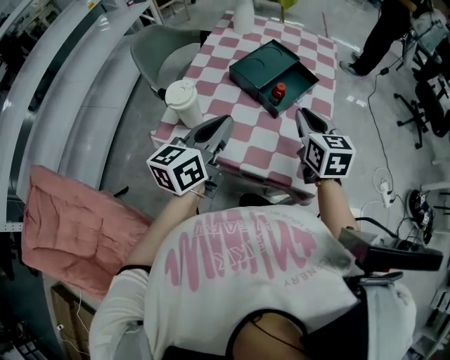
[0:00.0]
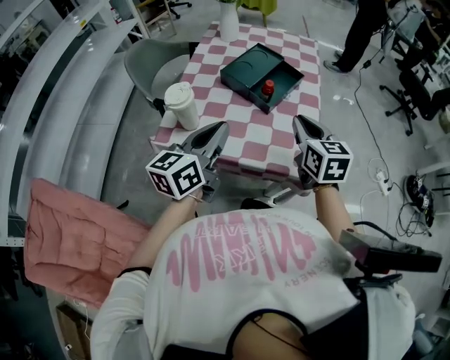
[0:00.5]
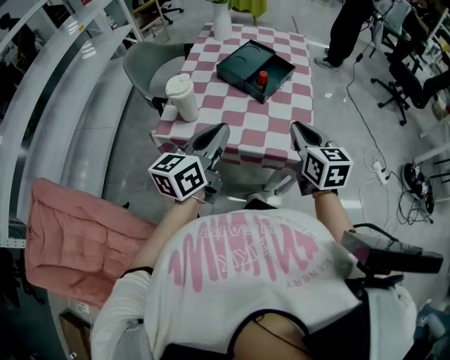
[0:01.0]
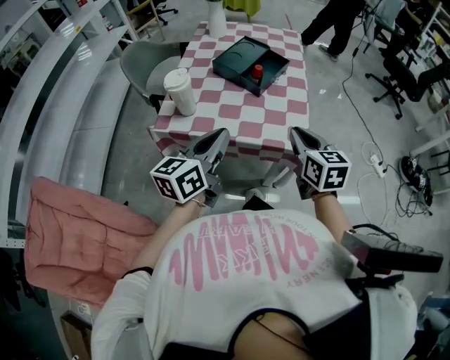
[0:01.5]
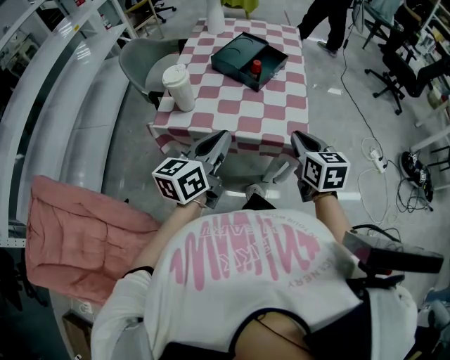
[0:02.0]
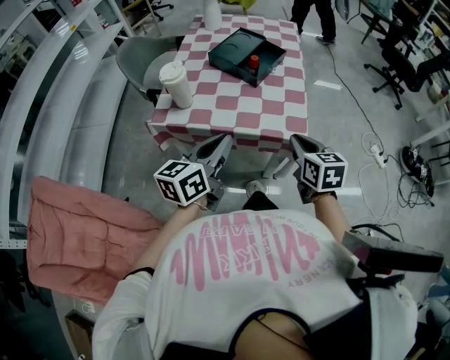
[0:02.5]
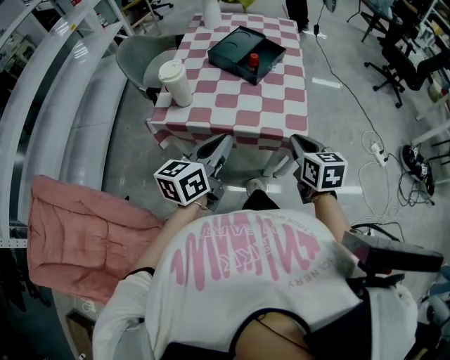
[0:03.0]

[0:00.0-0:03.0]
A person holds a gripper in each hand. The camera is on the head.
0:00.0 to 0:01.5: The two grippers go about 15 cm backward.
0:01.5 to 0:03.0: The right gripper moves downward, about 5 cm.

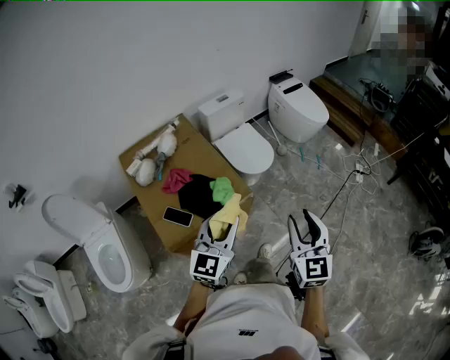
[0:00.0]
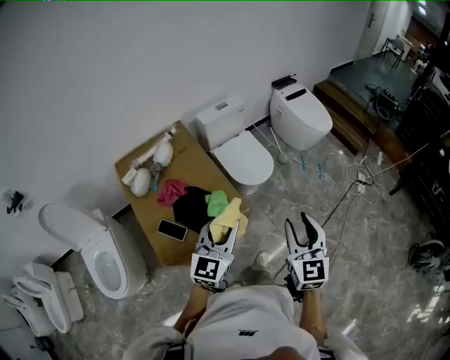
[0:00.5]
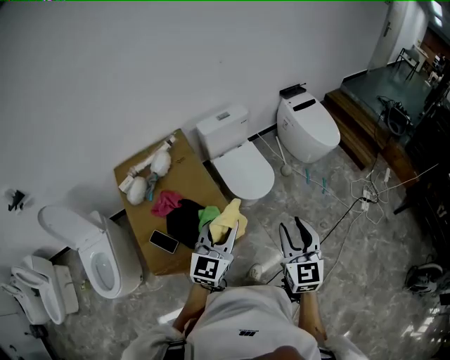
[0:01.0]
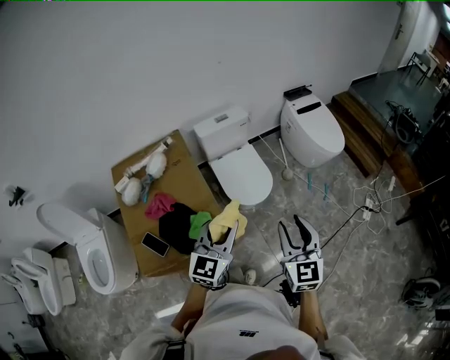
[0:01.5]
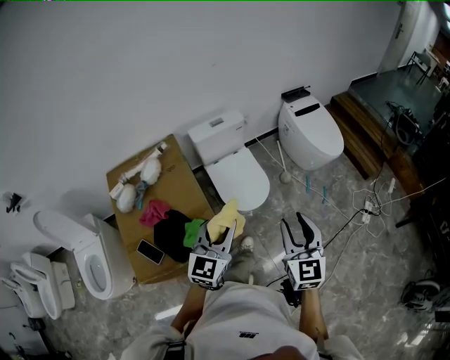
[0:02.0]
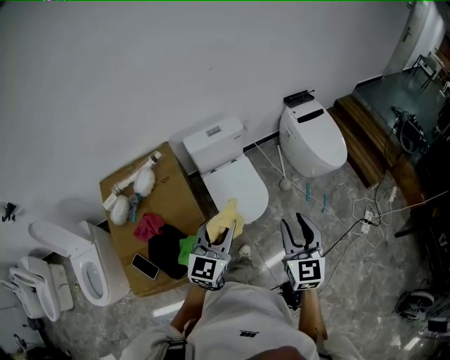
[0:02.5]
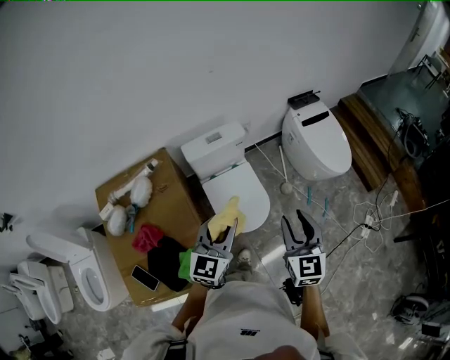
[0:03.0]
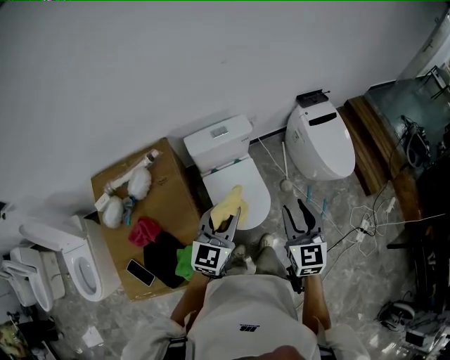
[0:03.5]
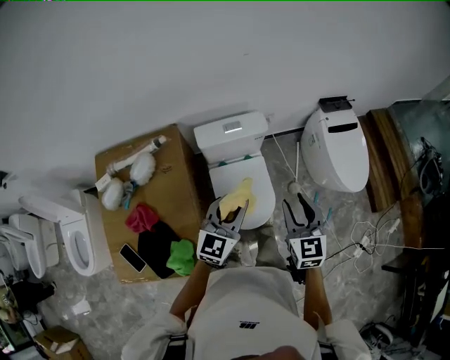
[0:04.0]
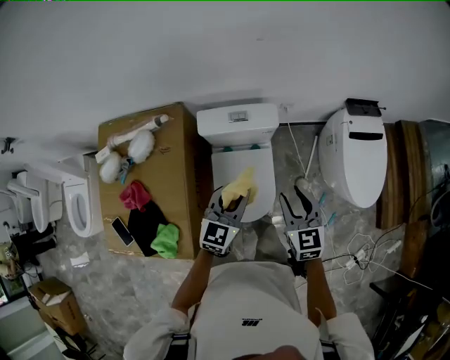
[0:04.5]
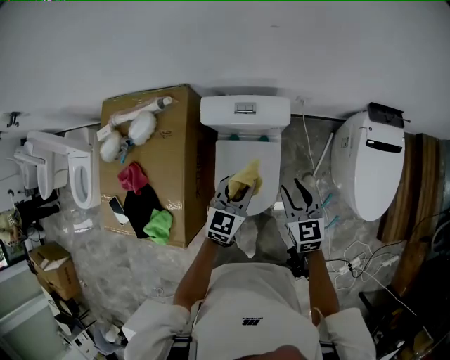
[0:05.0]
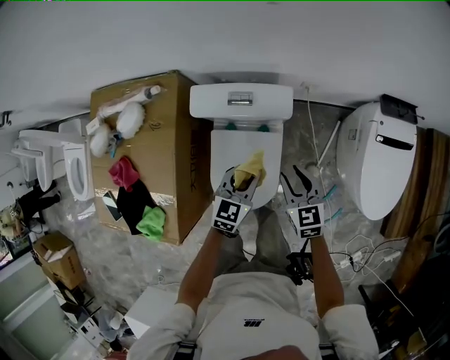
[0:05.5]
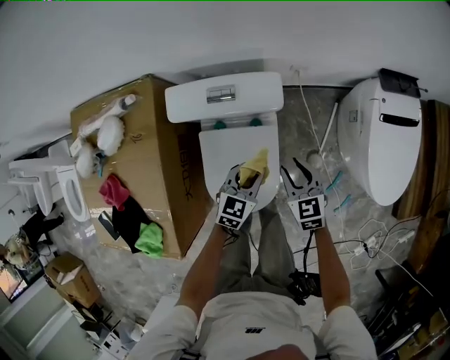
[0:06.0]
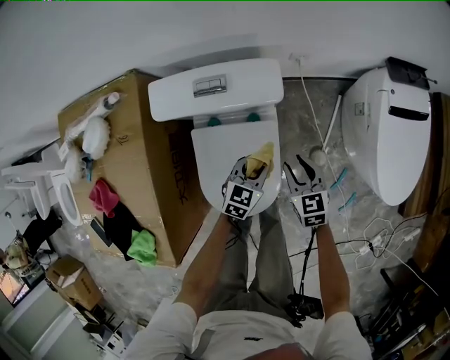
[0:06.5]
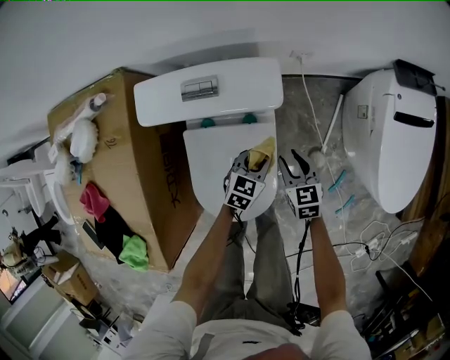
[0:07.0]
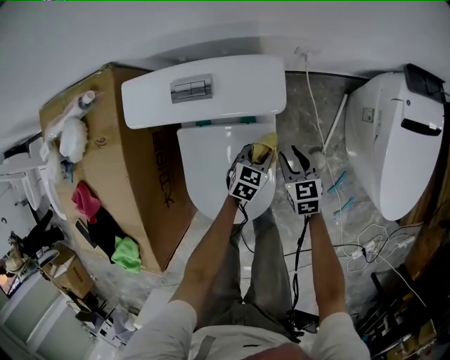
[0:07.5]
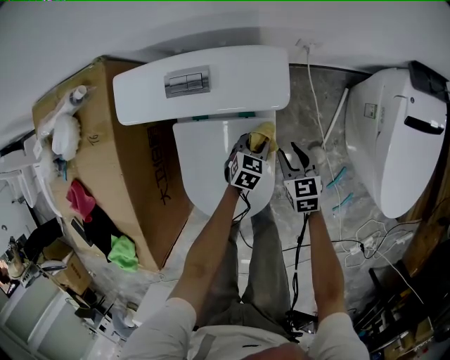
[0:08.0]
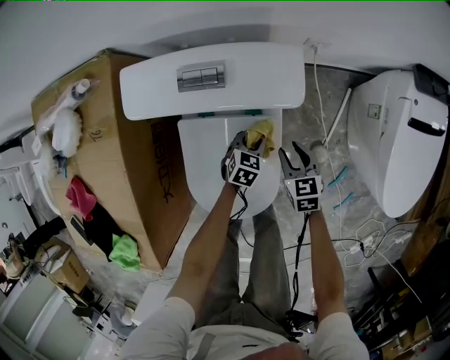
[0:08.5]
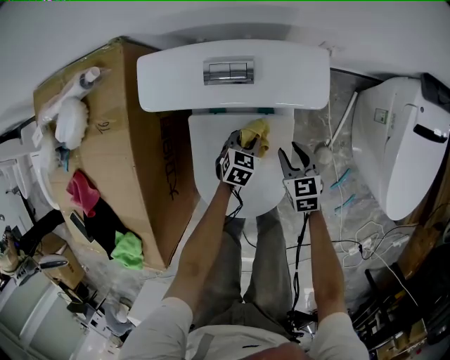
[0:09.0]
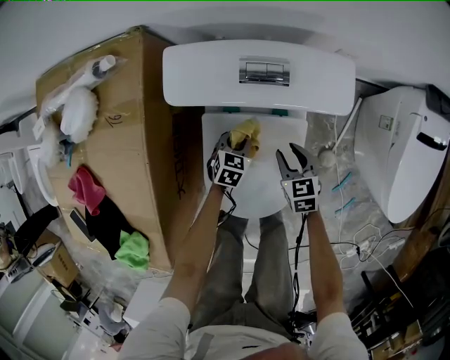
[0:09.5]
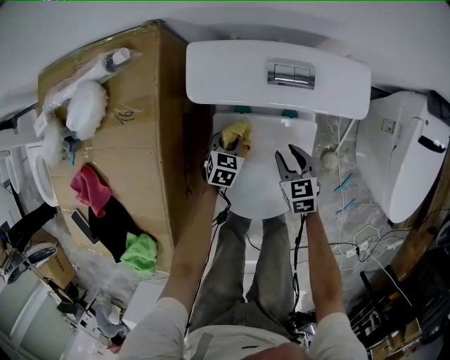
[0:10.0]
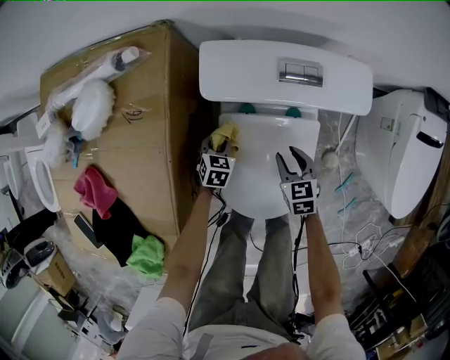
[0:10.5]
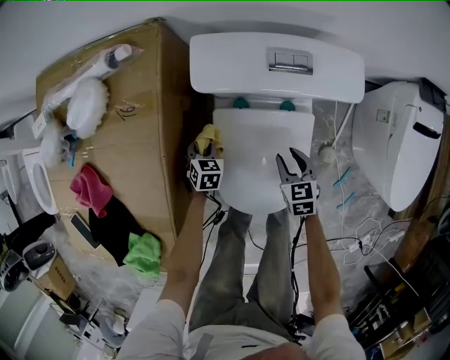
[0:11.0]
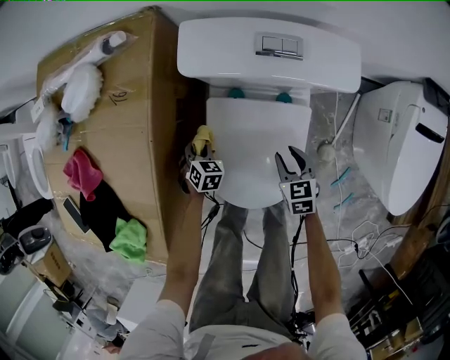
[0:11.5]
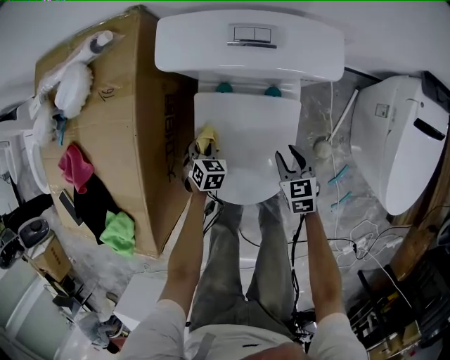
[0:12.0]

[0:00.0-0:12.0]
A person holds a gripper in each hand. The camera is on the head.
0:00.0 to 0:02.0: The left gripper is displaced forward and to the right by approximately 35 cm. The right gripper travels forward by approximately 35 cm.
0:02.0 to 0:04.0: Both grippers move forward, roughly 35 cm.
0:04.0 to 0:06.0: The left gripper goes about 40 cm downward, forward and to the right, and swivels some 30 degrees; the right gripper is displaced downward and forward by about 40 cm, and rotates about 30 degrees.
0:06.0 to 0:08.0: The grippers both shift downward by some 25 cm.
0:08.0 to 0:10.0: The two grippers go approximately 20 cm to the left.
0:10.0 to 0:12.0: The right gripper moves backward and to the right, about 10 cm. Meanwhile the left gripper is displaced backward and to the left by roughly 10 cm, and changes its angle by approximately 20 degrees.

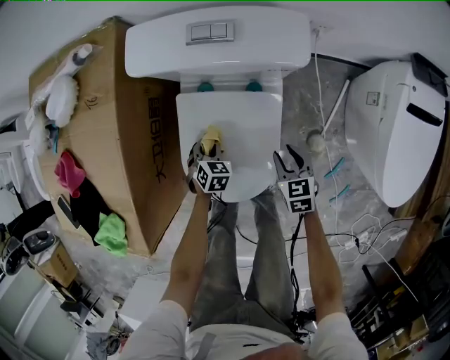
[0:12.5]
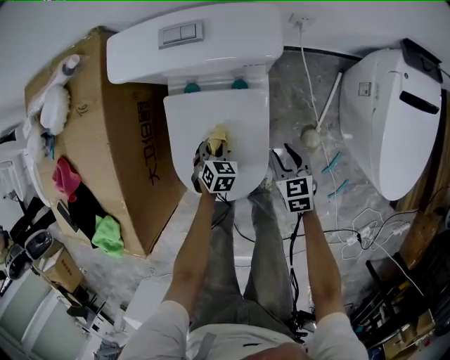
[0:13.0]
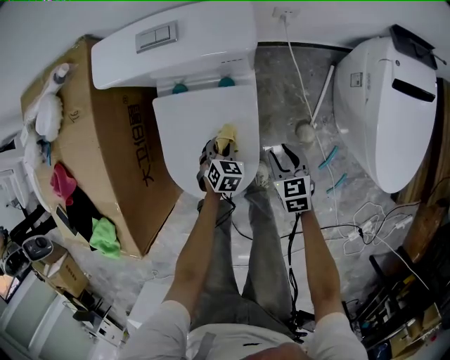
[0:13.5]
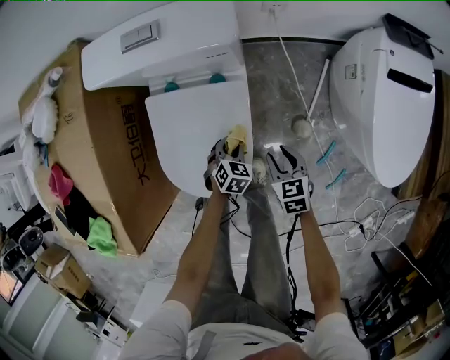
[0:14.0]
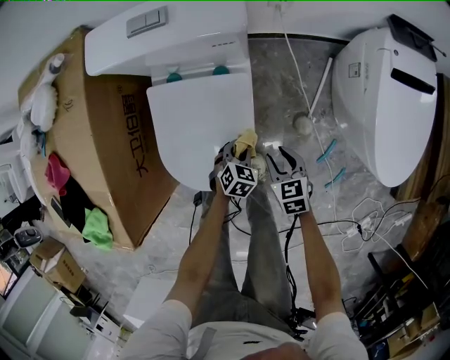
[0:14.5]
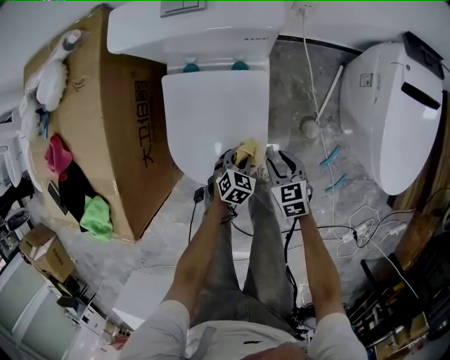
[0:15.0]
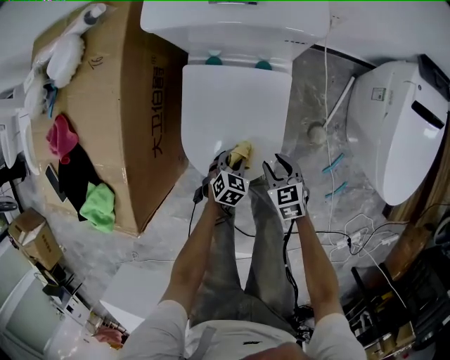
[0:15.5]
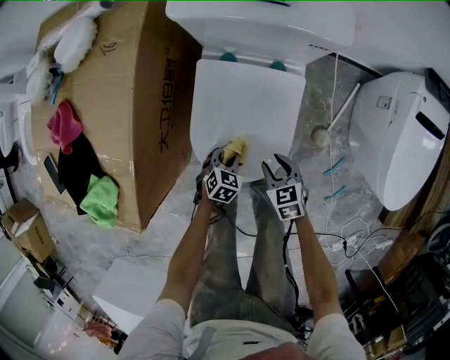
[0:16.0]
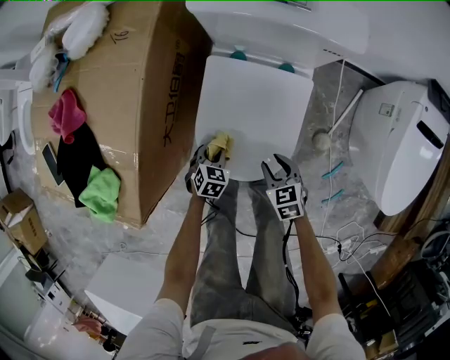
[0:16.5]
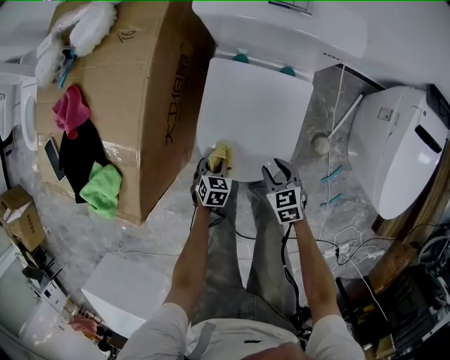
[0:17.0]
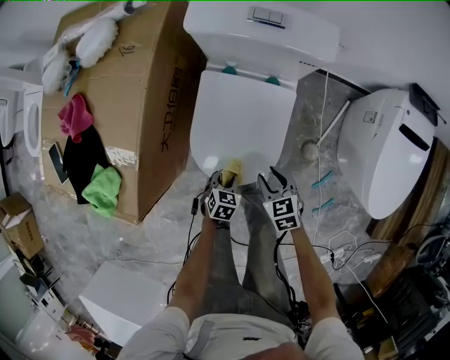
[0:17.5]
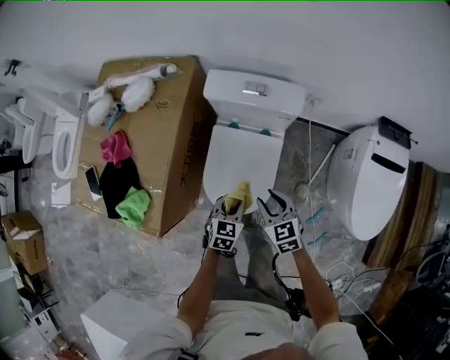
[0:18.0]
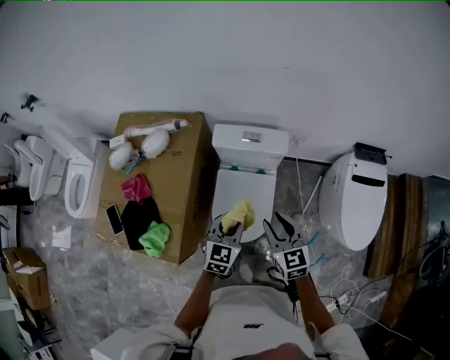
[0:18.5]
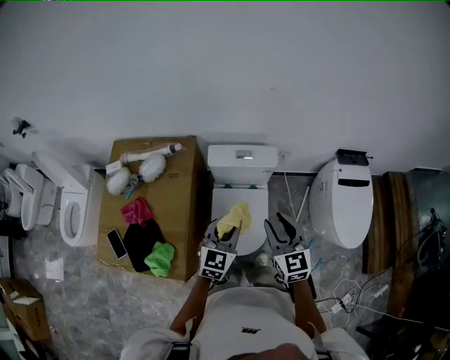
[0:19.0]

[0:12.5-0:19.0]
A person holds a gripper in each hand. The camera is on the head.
0:12.5 to 0:14.5: The right gripper goes approximately 10 cm backward and to the right. Meanwhile the left gripper heads to the right and backward, covering roughly 20 cm, and rotates approximately 20 degrees.
0:14.5 to 0:17.0: The left gripper is displaced to the left by roughly 25 cm, and rotates roughly 30 degrees, while the right gripper heads to the left, covering some 15 cm.
0:17.0 to 0:19.0: Both grippers travel together upward, some 60 cm. The right gripper angles its fingers upward, by some 40 degrees. The left gripper angles its fingers upward, by approximately 50 degrees.

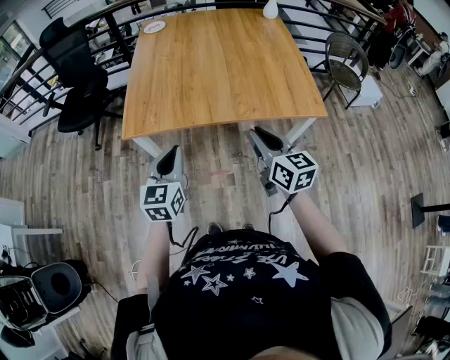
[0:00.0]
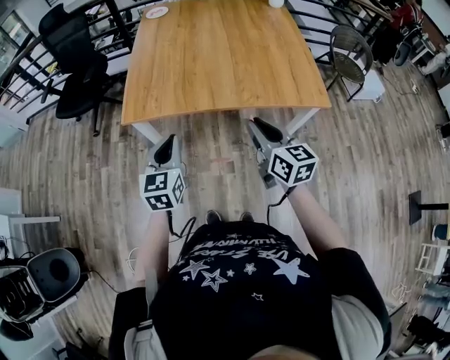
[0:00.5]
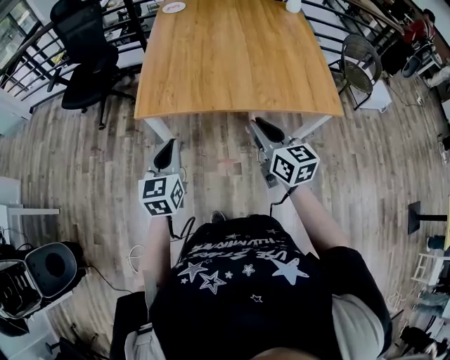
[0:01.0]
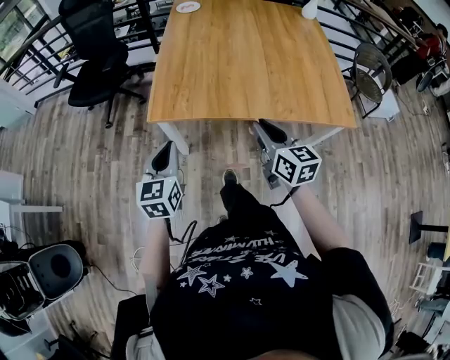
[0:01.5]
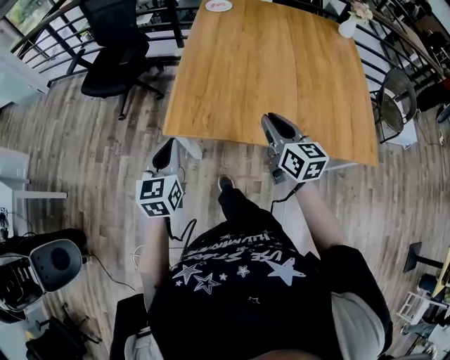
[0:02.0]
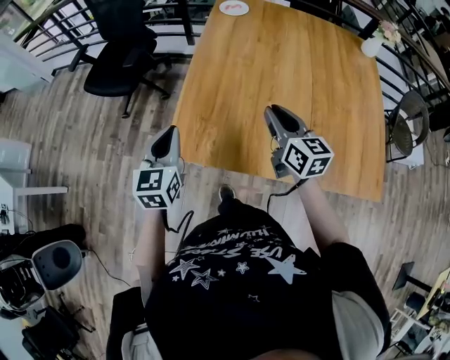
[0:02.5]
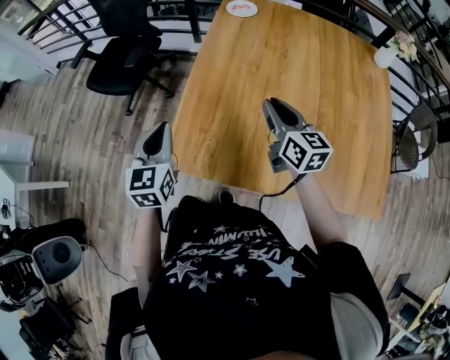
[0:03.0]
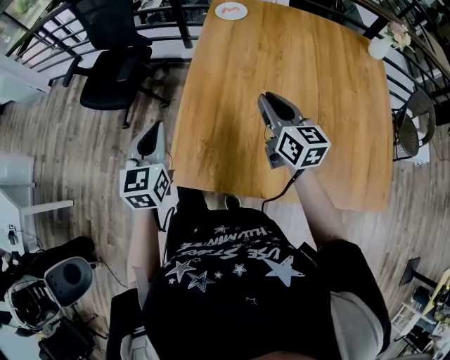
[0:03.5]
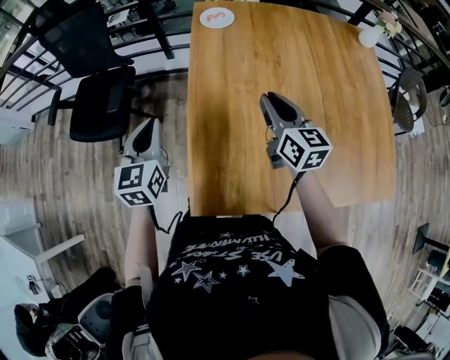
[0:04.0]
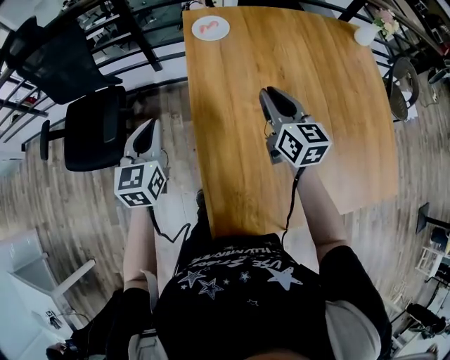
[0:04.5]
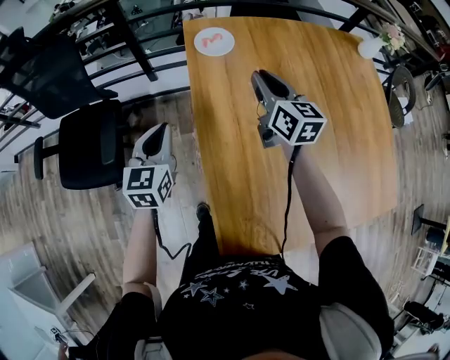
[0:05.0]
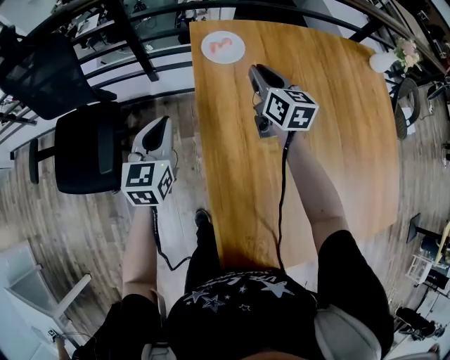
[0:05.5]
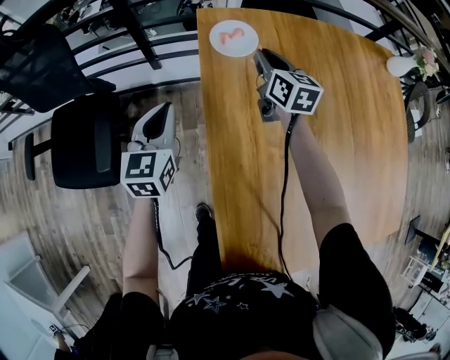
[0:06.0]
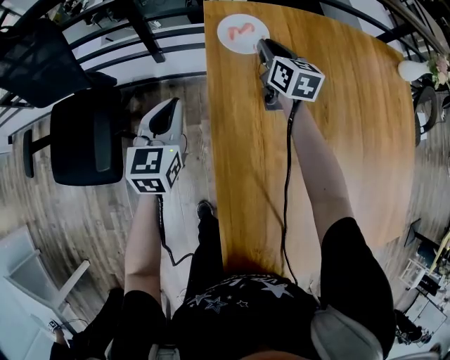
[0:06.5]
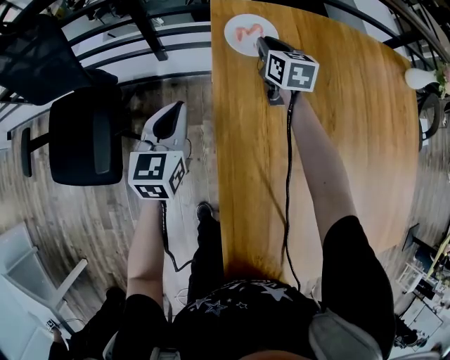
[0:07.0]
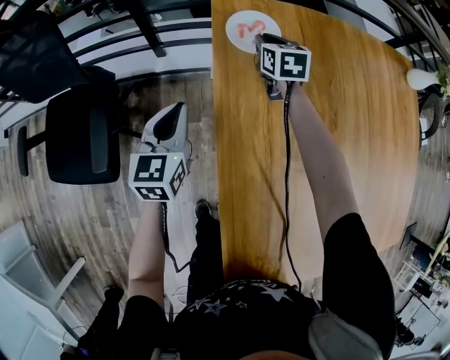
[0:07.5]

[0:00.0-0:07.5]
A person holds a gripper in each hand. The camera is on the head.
0:00.0 to 0:02.0: The left gripper heads to the left and forward, covering some 25 cm. The right gripper shifts some 25 cm forward and to the left.
0:02.0 to 0:04.0: The grippers both shift forward by roughly 35 cm.
0:04.0 to 0:05.5: The grippers both shift forward by some 30 cm.
0:05.5 to 0:07.5: The left gripper goes about 10 cm downward and forward; the right gripper moves forward and downward, some 20 cm, and turns by approximately 20 degrees.
